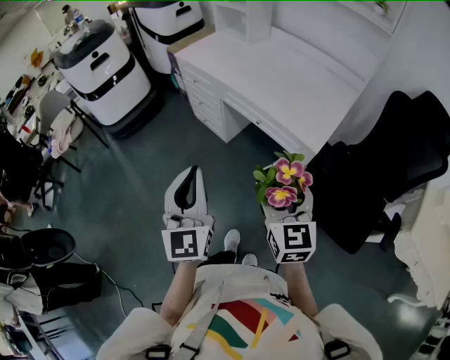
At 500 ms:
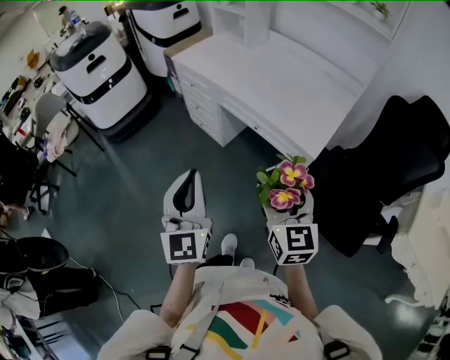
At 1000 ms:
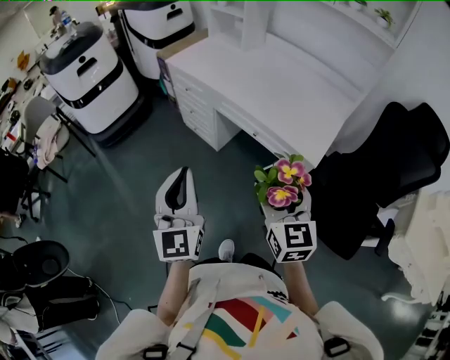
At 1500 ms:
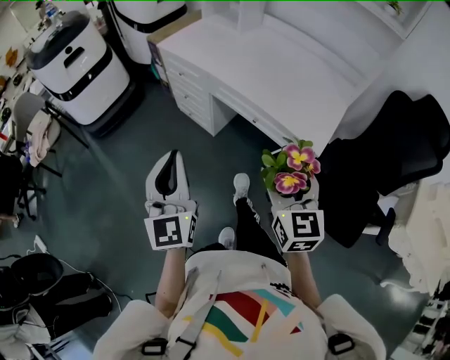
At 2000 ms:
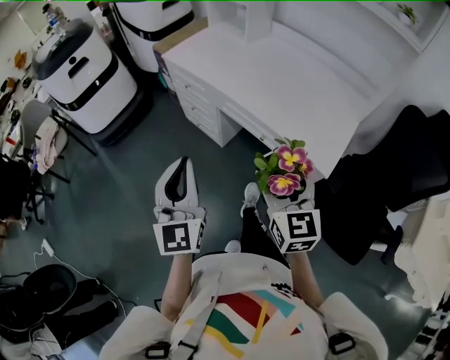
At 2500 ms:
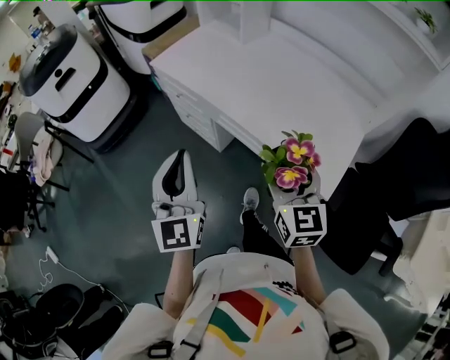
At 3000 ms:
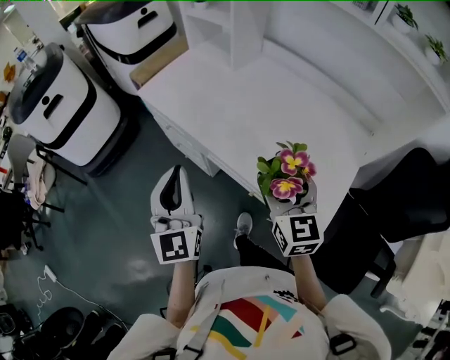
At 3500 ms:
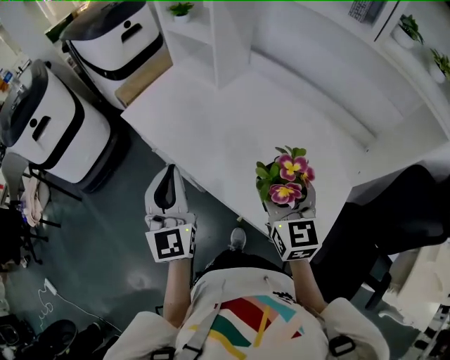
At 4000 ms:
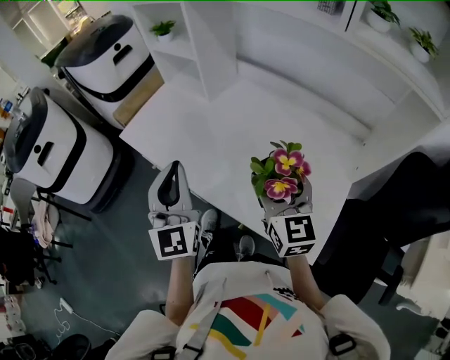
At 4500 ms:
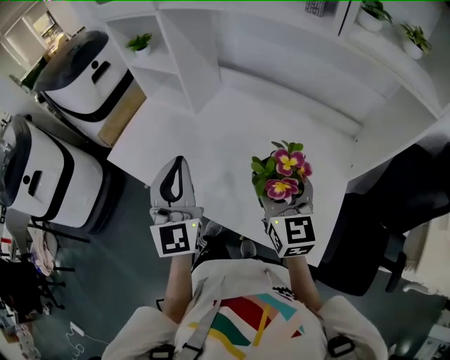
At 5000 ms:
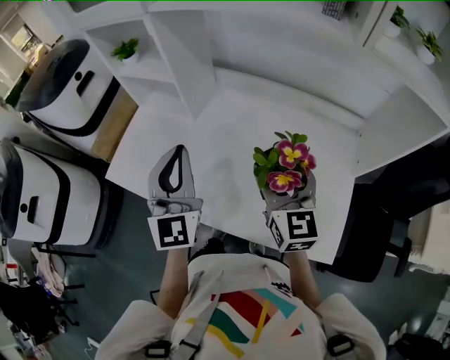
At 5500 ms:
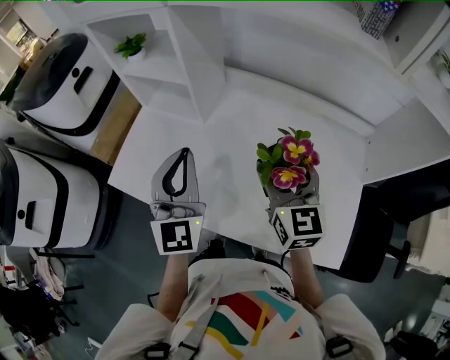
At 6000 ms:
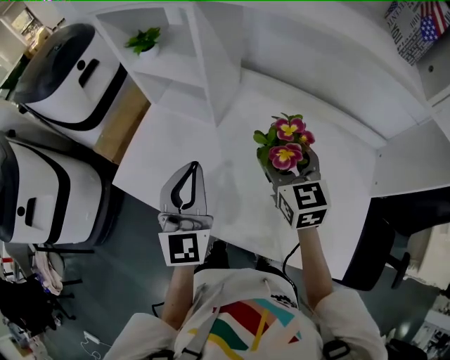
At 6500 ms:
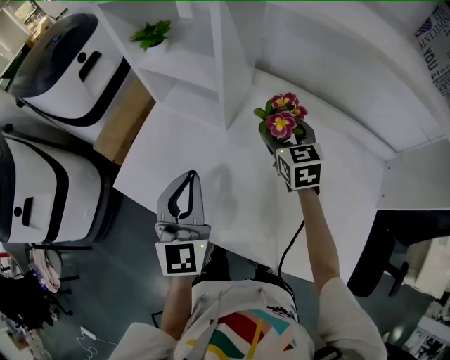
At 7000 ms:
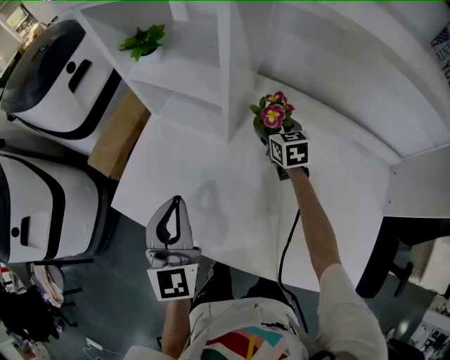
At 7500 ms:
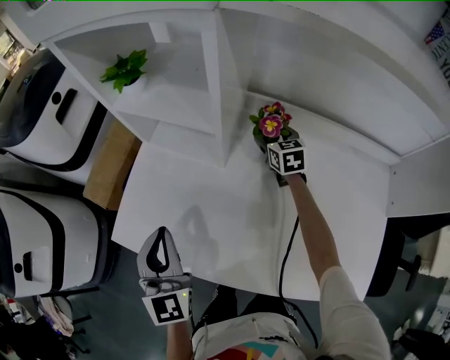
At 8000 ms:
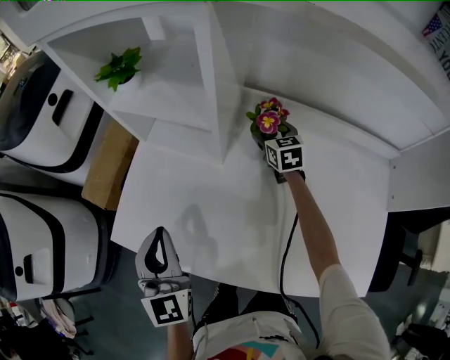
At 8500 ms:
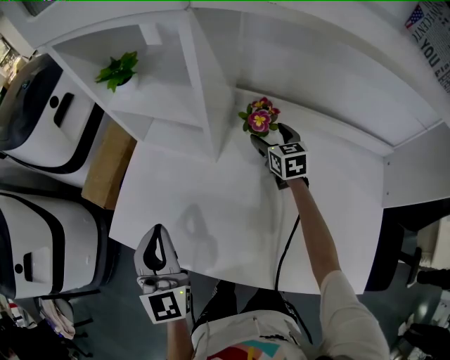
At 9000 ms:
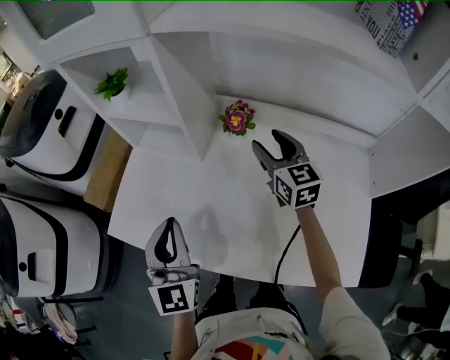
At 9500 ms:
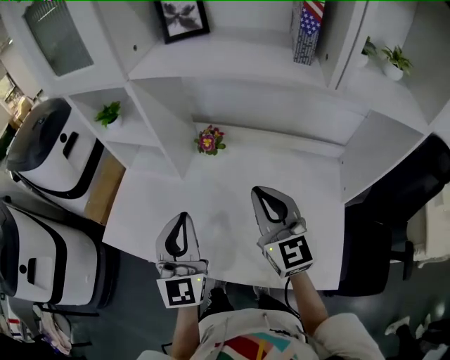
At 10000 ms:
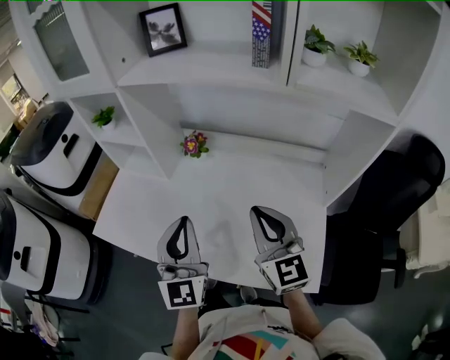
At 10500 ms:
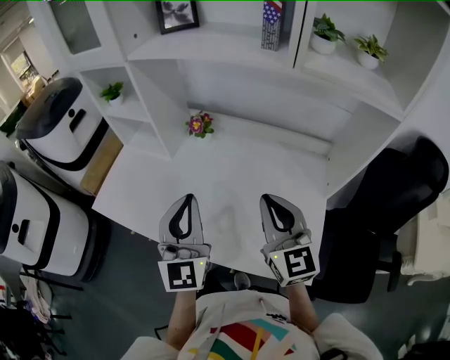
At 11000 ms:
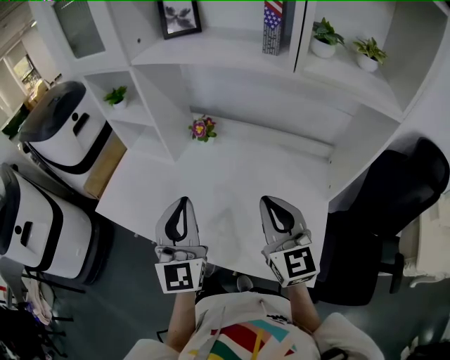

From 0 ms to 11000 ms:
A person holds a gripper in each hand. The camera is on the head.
From 0 ms to 2000 ms: The two grippers go some 15 cm forward.
From 2000 ms to 3500 ms: The left gripper travels forward by approximately 35 cm. The right gripper heads forward and to the right, covering roughly 35 cm.
From 3500 ms to 5500 ms: Both grippers move forward, roughly 20 cm. The left gripper turns by approximately 20 degrees.
From 5500 ms to 7500 ms: The right gripper shifts roughly 40 cm forward and downward, and swivels roughly 20 degrees; the left gripper heads to the left, downward and forward, covering approximately 20 cm.
From 7500 ms to 9000 ms: The left gripper travels to the right, upward and backward by approximately 10 cm. Meanwhile the right gripper shifts approximately 20 cm upward and backward.
From 9000 ms to 11000 ms: The left gripper is displaced to the right, backward and upward by about 25 cm. Meanwhile the right gripper moves backward and upward, some 30 cm, and closes.

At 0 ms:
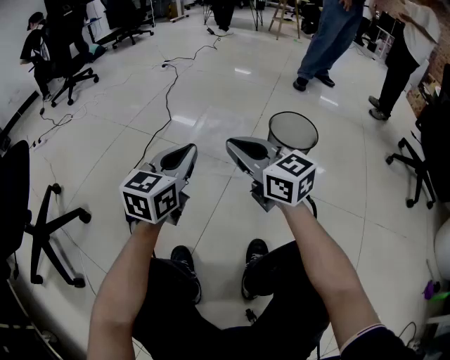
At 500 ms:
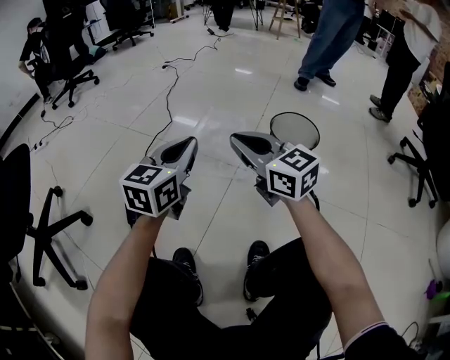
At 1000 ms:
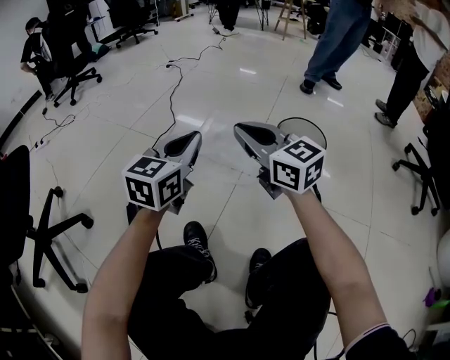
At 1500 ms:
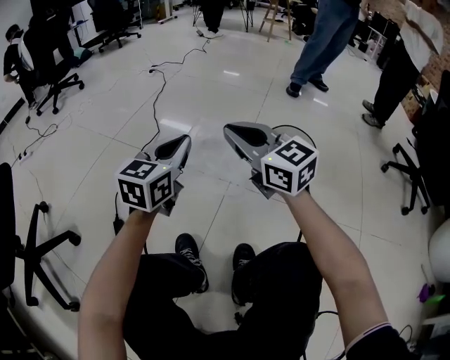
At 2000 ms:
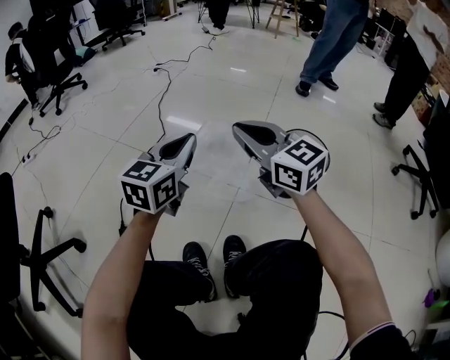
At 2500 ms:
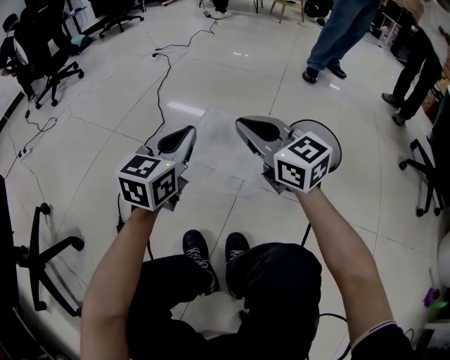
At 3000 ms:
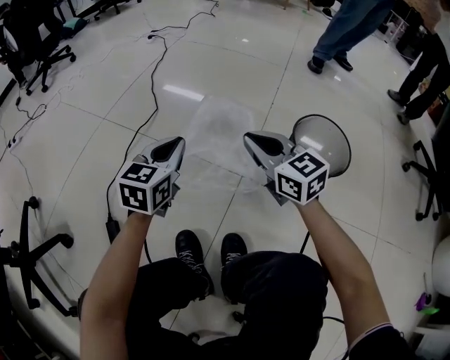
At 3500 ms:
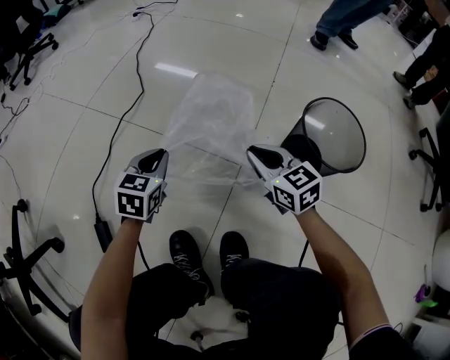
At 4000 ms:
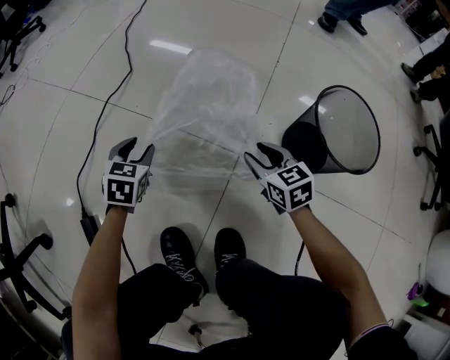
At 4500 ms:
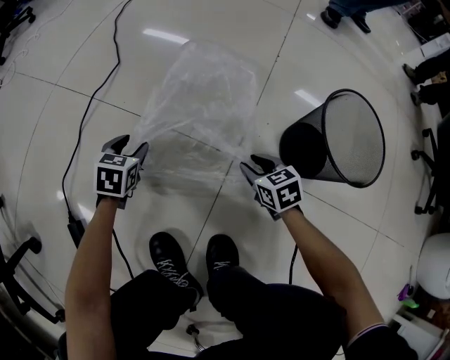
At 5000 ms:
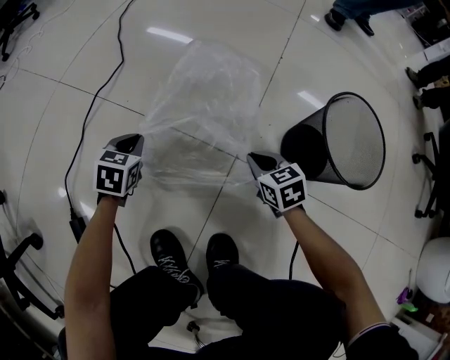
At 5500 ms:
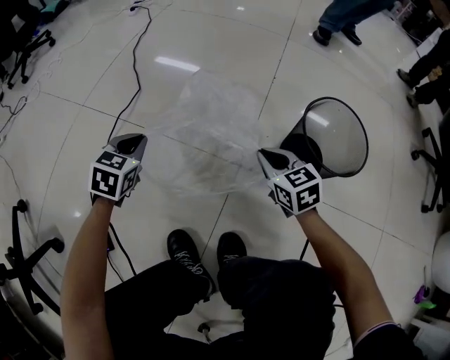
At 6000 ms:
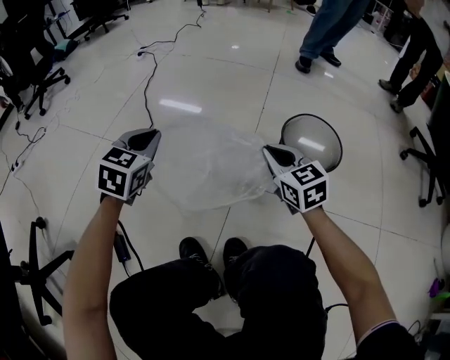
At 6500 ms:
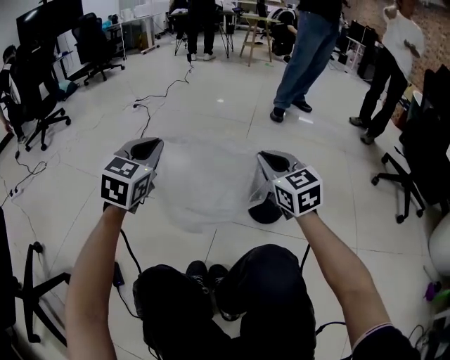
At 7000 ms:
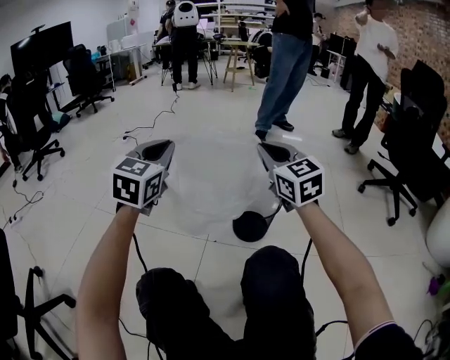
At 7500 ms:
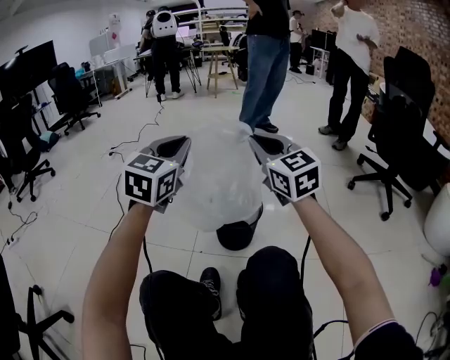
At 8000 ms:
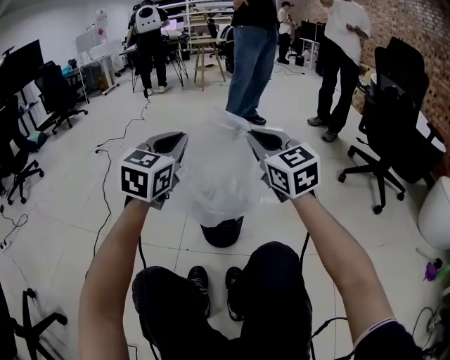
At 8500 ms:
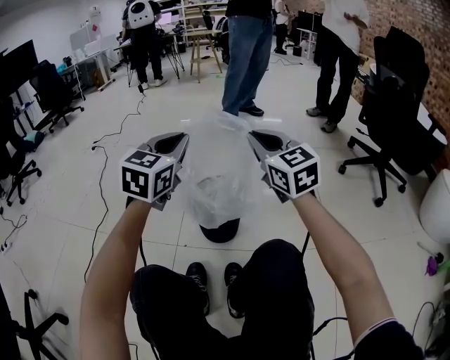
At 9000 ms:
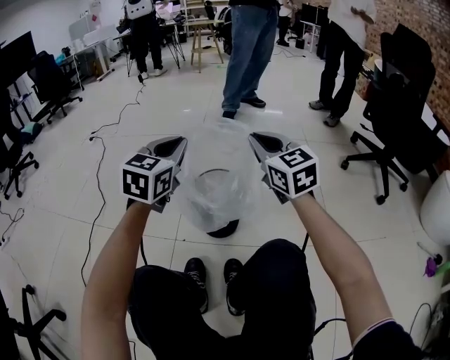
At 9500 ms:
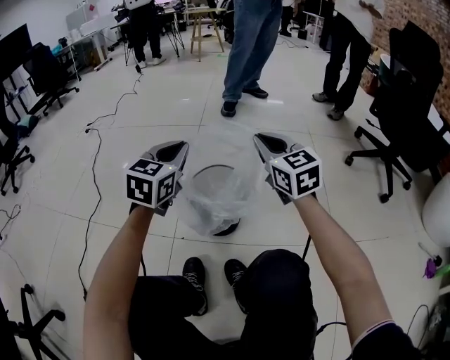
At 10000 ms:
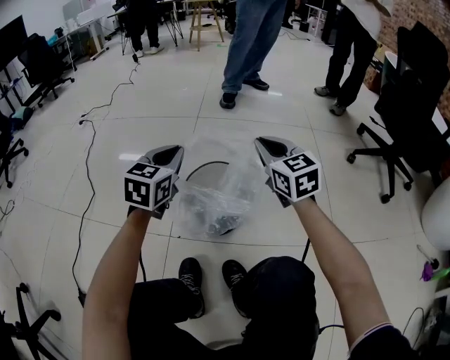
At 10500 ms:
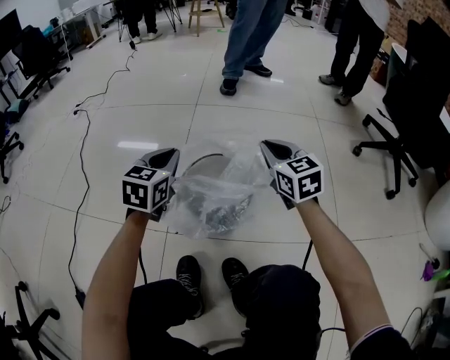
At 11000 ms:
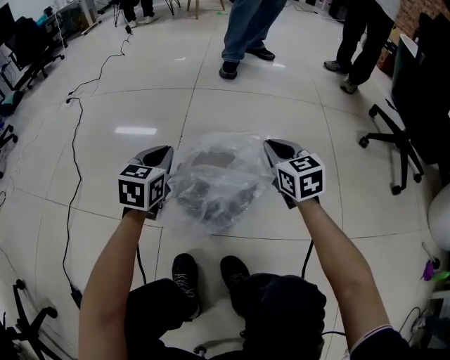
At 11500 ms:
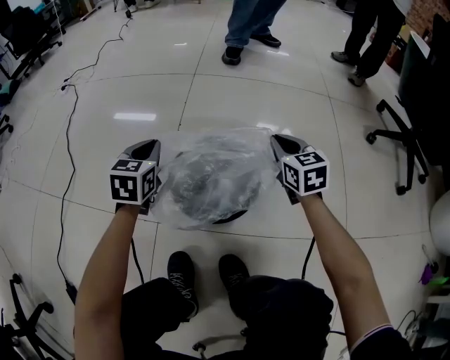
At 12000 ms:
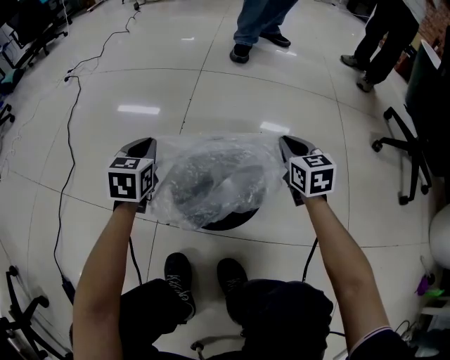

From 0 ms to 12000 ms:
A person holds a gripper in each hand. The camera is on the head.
From 0 ms to 2000 ms: The grippers both shift forward by approximately 15 cm.
From 2000 ms to 4000 ms: The grippers both shift downward by approximately 40 cm. The left gripper points its fingers about 40 degrees further downward, and opens; the right gripper tips its fingers downward by roughly 30 degrees, and opens up.
From 4000 ms to 6000 ms: The two grippers go approximately 25 cm upward. The right gripper closes up. Meanwhile the left gripper swivels about 20 degrees, and closes its fingers.
From 6000 ms to 8000 ms: The left gripper moves to the right and upward, approximately 40 cm, and swivels some 30 degrees. Meanwhile the right gripper moves upward and to the right, approximately 40 cm, and changes its angle by about 30 degrees.
From 8000 ms to 10000 ms: Both grippers travel together downward and forward, some 20 cm.
From 10000 ms to 12000 ms: The right gripper moves downward and forward, approximately 25 cm. The left gripper moves downward, forward and to the left, roughly 20 cm, and changes its angle by roughly 20 degrees.

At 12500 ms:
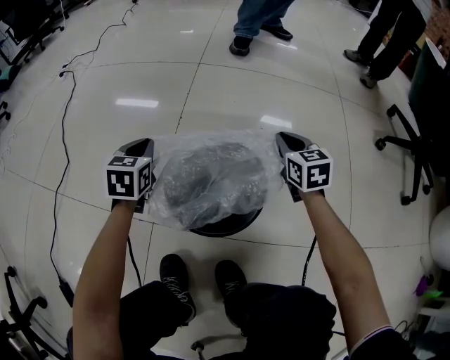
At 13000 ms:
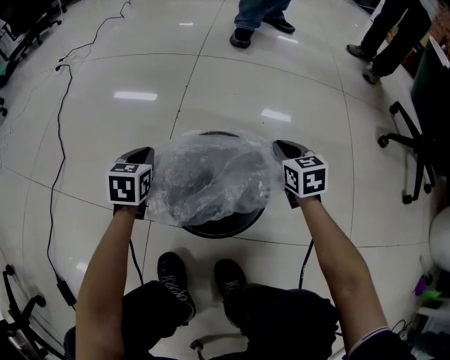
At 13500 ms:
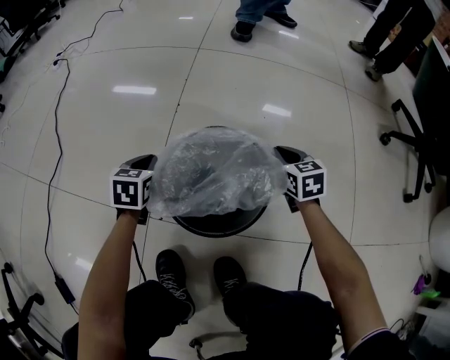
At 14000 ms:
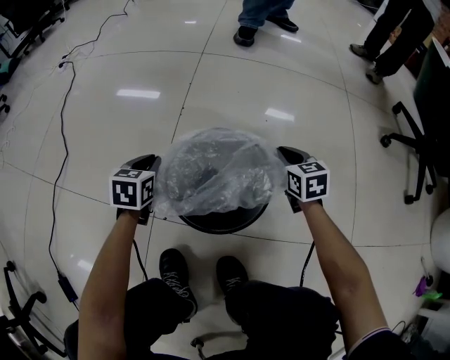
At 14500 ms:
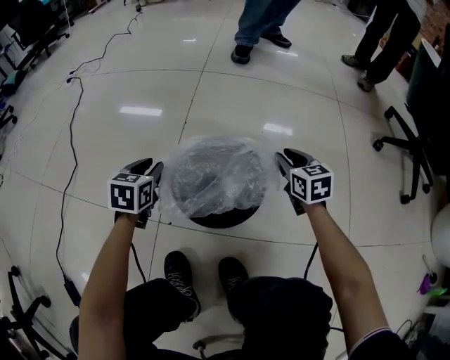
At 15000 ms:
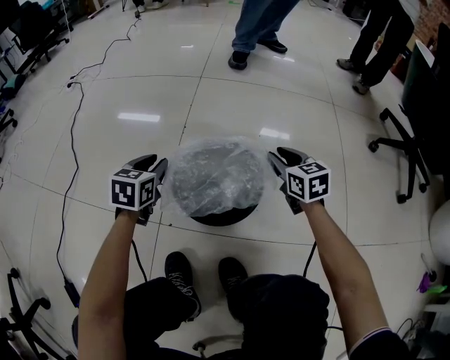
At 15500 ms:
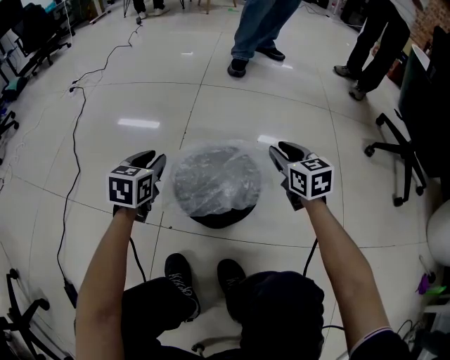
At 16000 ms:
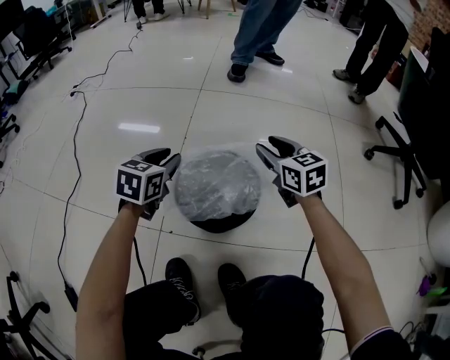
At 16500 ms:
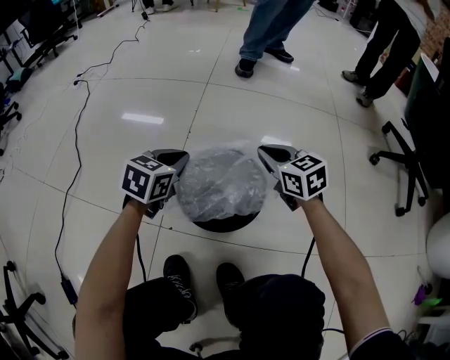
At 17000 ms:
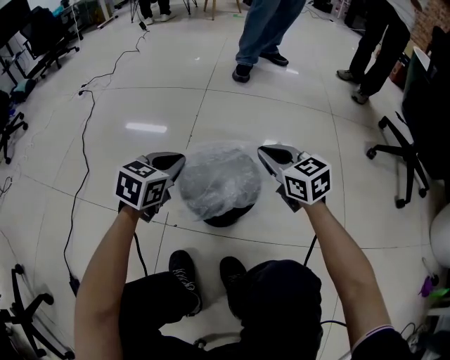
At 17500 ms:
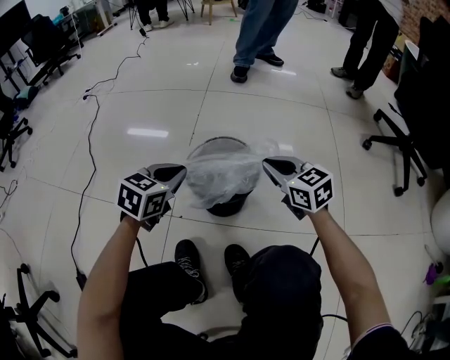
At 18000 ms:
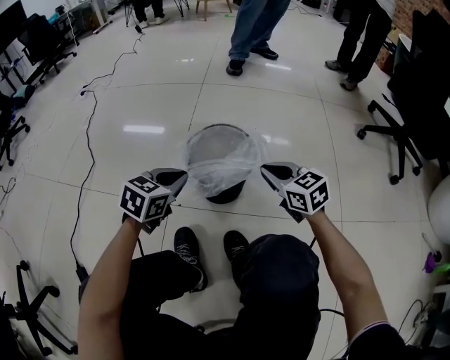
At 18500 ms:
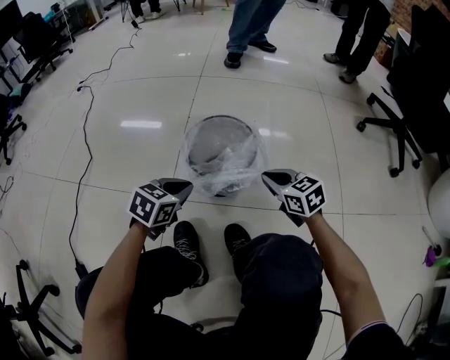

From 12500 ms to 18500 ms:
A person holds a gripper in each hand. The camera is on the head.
From 12500 ms to 14500 ms: The left gripper shifts approximately 5 cm backward, goes downward and returns, approximately 10 cm each way, and opens. Meanwhile the right gripper travels downward and back again, some 10 cm each way, and opens up.
From 14500 ms to 16500 ms: The left gripper goes approximately 10 cm to the right and upward, and closes up, while the right gripper shifts some 10 cm to the left and upward, and closes up.
From 16500 ms to 18500 ms: Both grippers move backward, roughly 20 cm.
